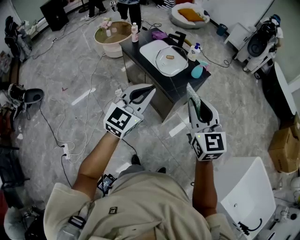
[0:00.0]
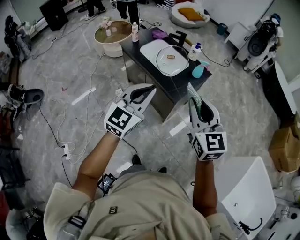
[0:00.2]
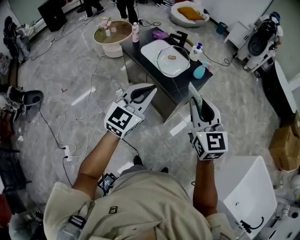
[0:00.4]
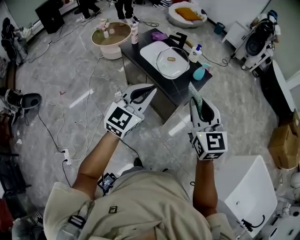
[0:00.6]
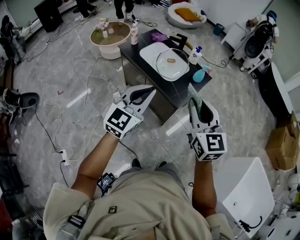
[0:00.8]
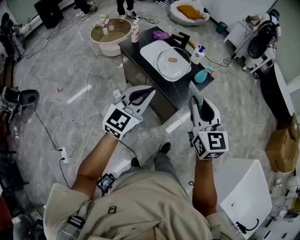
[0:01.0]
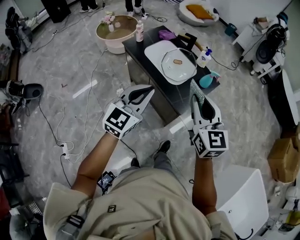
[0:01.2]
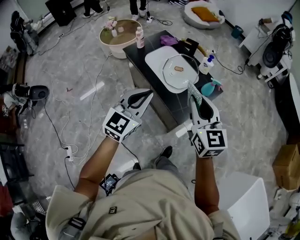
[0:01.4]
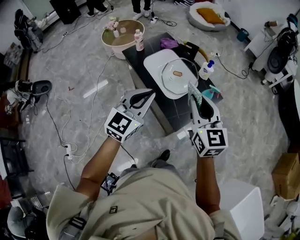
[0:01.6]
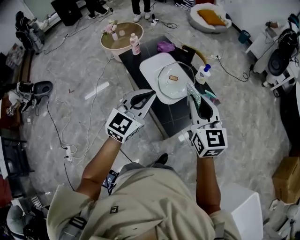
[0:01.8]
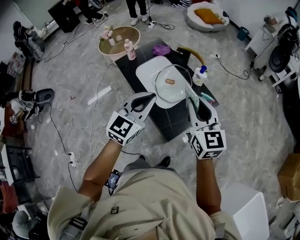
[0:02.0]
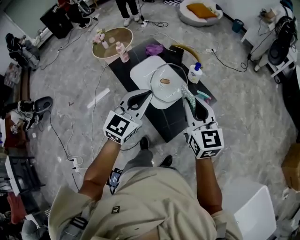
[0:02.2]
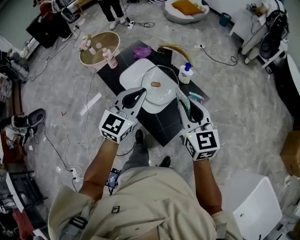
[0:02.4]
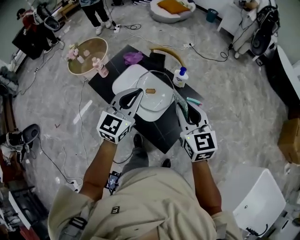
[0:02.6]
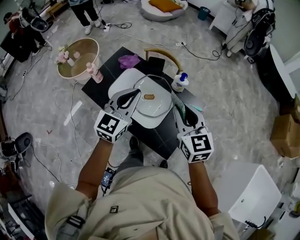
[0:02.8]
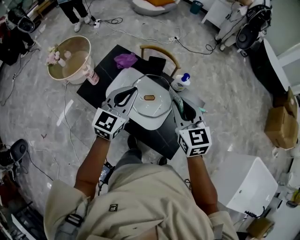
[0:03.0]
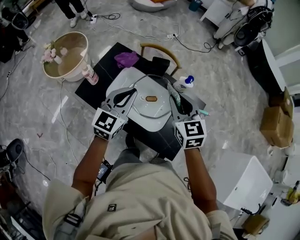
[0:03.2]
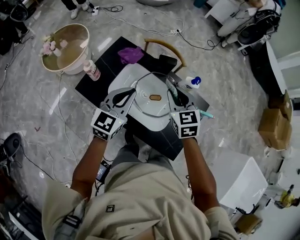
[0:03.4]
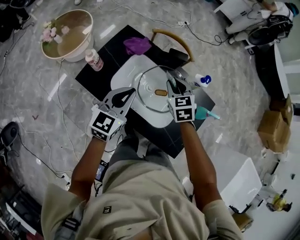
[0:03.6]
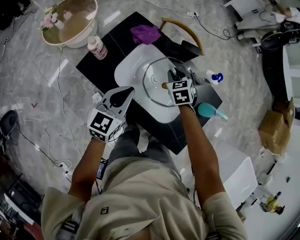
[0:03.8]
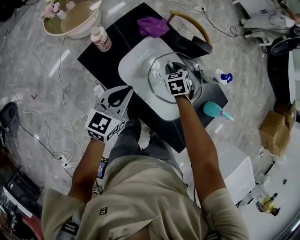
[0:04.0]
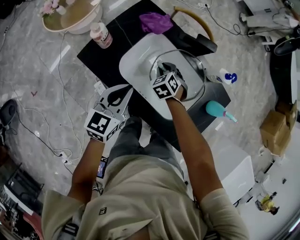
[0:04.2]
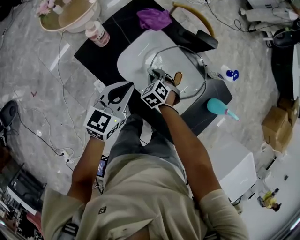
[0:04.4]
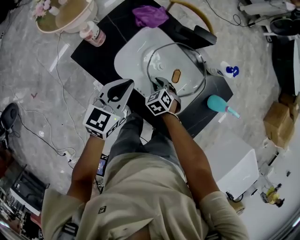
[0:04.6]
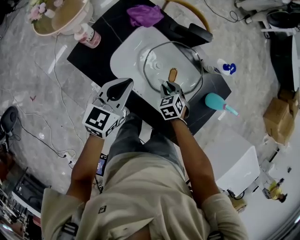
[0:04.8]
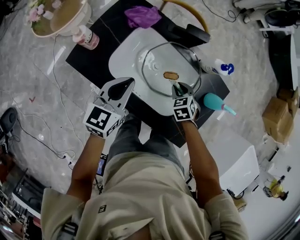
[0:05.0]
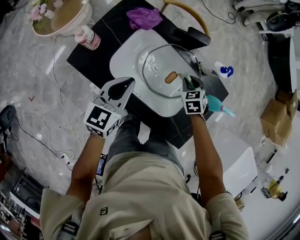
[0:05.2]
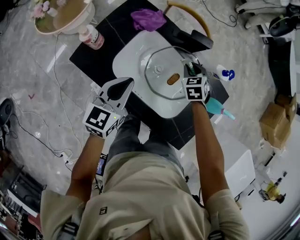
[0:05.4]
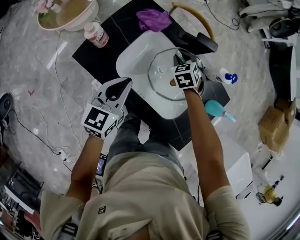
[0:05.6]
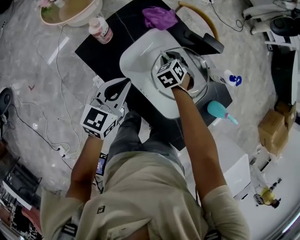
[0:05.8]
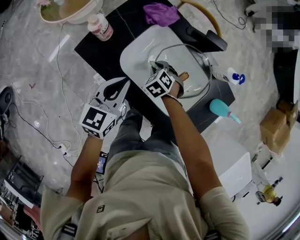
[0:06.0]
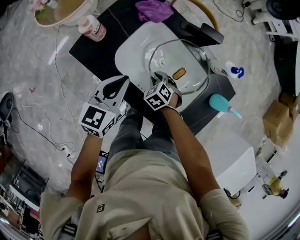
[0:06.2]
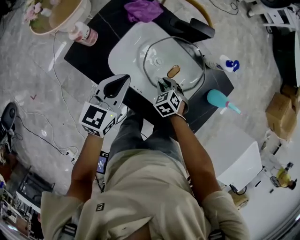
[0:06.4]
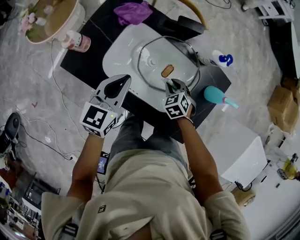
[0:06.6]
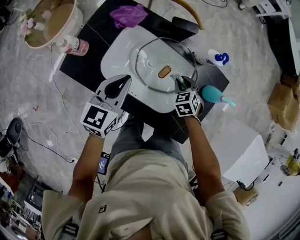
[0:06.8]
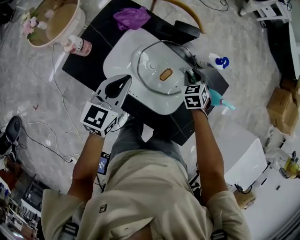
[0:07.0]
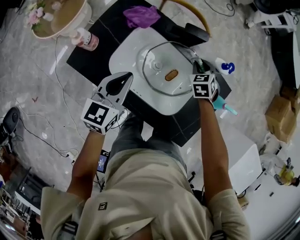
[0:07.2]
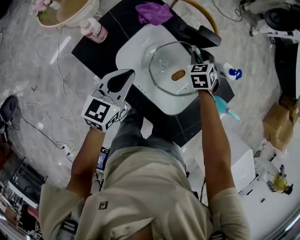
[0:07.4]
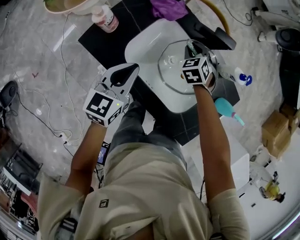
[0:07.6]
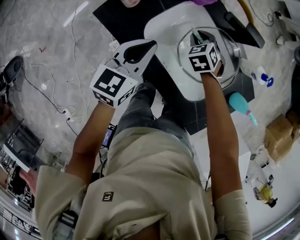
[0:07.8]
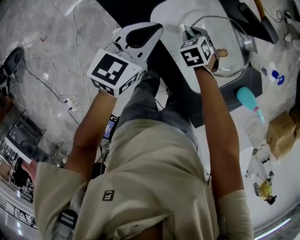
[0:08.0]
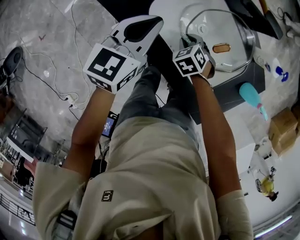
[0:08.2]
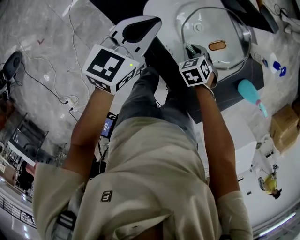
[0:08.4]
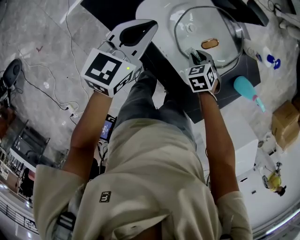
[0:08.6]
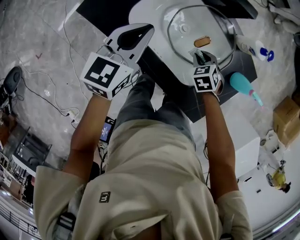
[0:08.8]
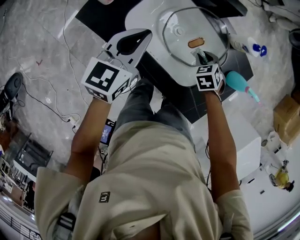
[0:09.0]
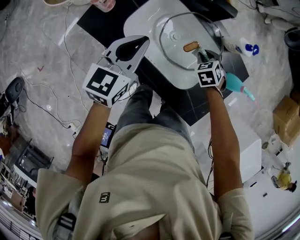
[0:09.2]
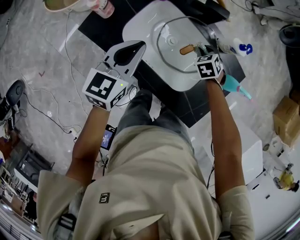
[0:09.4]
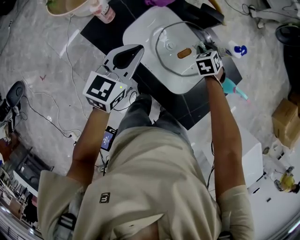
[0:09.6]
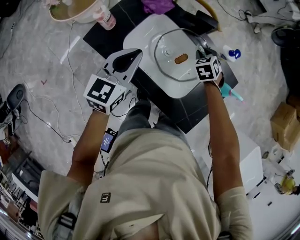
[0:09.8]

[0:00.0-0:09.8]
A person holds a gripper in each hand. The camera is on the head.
0:00.0 to 0:01.4: The two grippers go some 20 cm forward.
0:01.4 to 0:02.8: Both grippers move forward, roughly 30 cm.
0:02.8 to 0:04.2: The right gripper moves downward, to the left and forward, approximately 50 cm, and tilts its fingers some 40 degrees downward, while the left gripper shifts roughly 30 cm downward and to the left, and changes its angle by some 30 degrees.
0:04.2 to 0:05.6: The right gripper heads forward, covering some 10 cm, and goes to the right and returns, approximately 20 cm each way.
0:05.6 to 0:07.0: The left gripper goes roughly 5 cm to the right; the right gripper travels to the right and backward by roughly 15 cm.
0:07.0 to 0:08.4: The left gripper moves approximately 10 cm. The right gripper moves roughly 25 cm, and swivels some 30 degrees.
0:08.4 to 0:09.8: The left gripper is displaced upward by some 10 cm, while the right gripper moves approximately 25 cm, and swivels about 20 degrees.

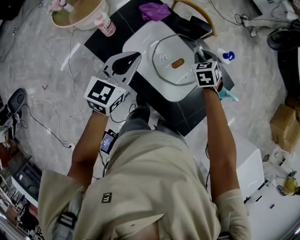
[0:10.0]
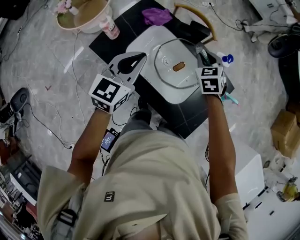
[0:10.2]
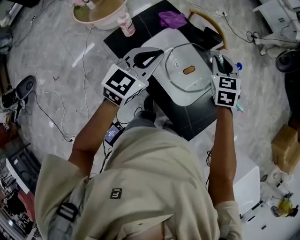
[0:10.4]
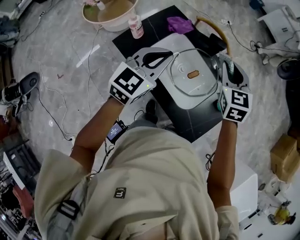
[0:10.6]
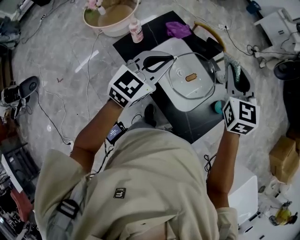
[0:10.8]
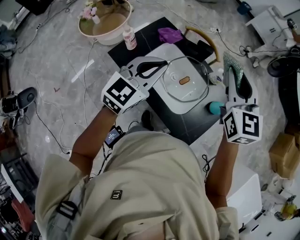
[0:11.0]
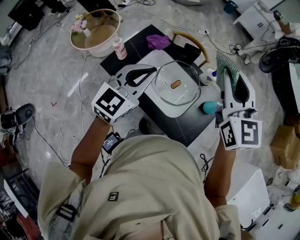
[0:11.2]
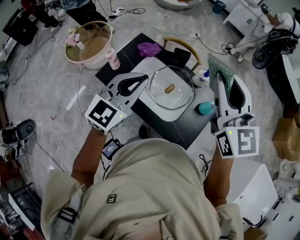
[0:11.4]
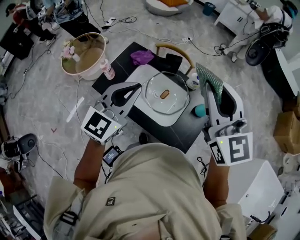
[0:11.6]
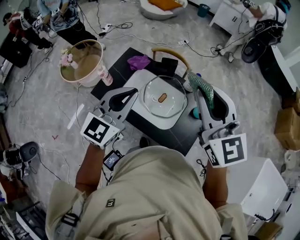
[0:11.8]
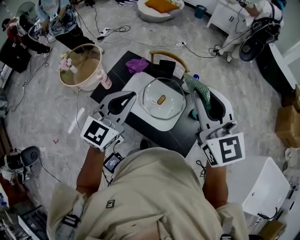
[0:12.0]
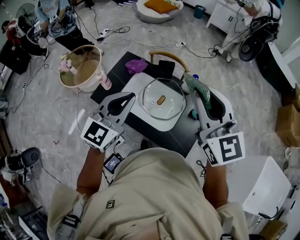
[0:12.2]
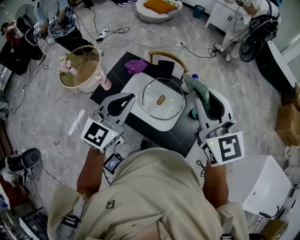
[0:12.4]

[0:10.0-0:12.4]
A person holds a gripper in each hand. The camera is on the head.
0:10.0 to 0:11.2: The left gripper moves upward, approximately 15 cm; the right gripper heads upward, covering roughly 40 cm, and angles its fingers upward, by some 50 degrees.
0:11.2 to 0:12.4: The left gripper changes place by approximately 5 cm. The right gripper goes about 5 cm backward.

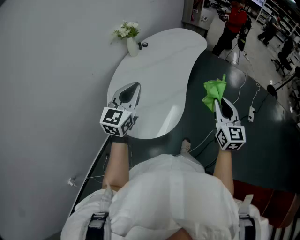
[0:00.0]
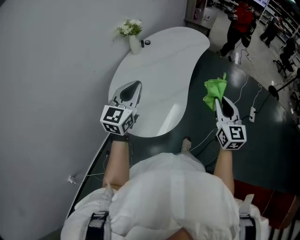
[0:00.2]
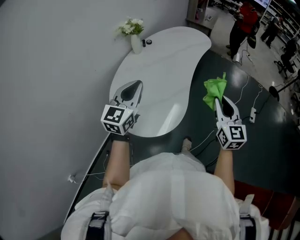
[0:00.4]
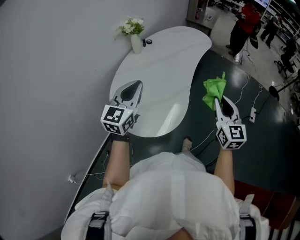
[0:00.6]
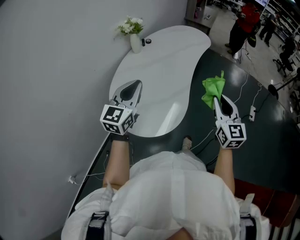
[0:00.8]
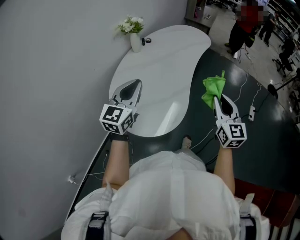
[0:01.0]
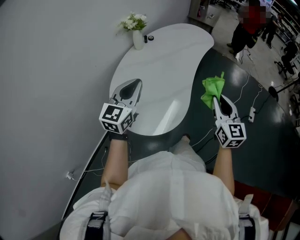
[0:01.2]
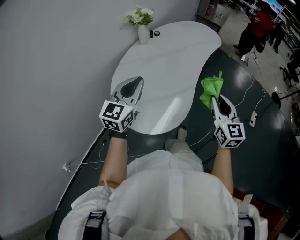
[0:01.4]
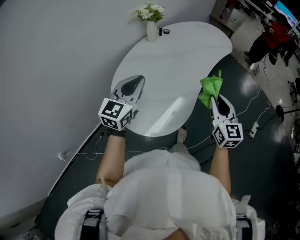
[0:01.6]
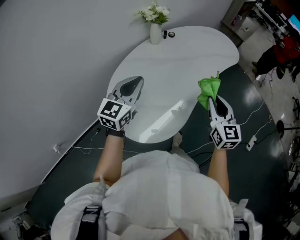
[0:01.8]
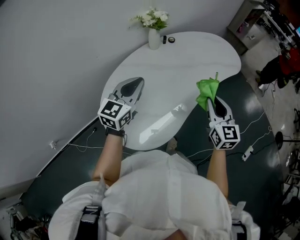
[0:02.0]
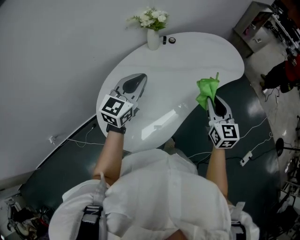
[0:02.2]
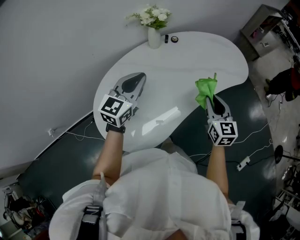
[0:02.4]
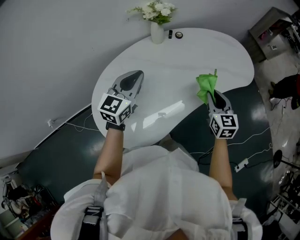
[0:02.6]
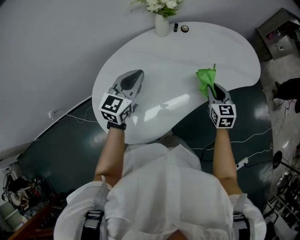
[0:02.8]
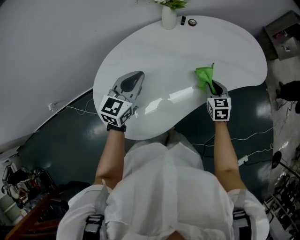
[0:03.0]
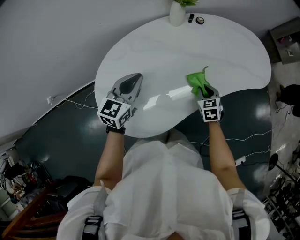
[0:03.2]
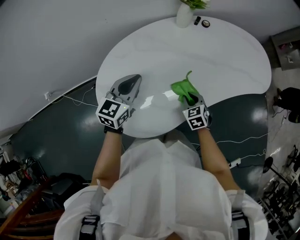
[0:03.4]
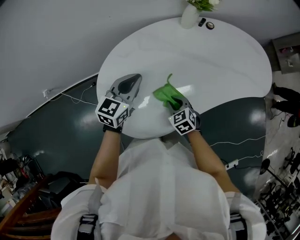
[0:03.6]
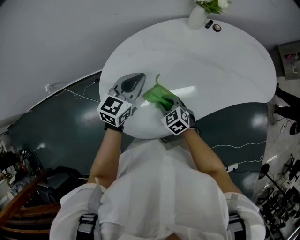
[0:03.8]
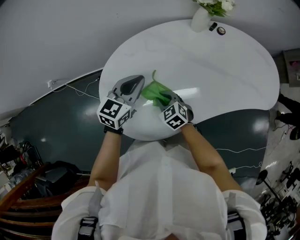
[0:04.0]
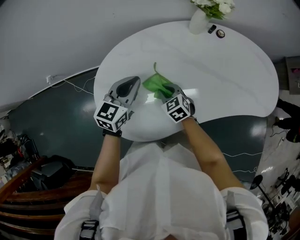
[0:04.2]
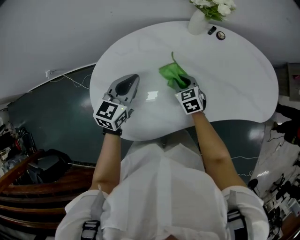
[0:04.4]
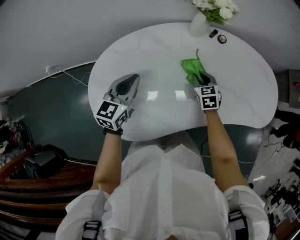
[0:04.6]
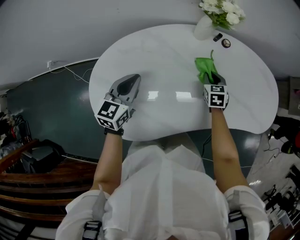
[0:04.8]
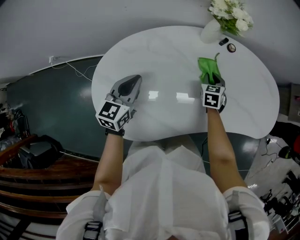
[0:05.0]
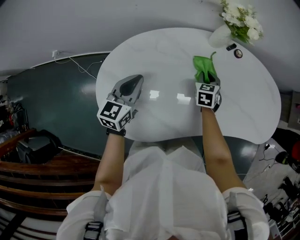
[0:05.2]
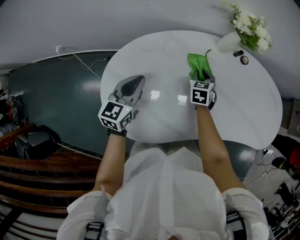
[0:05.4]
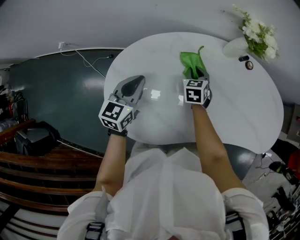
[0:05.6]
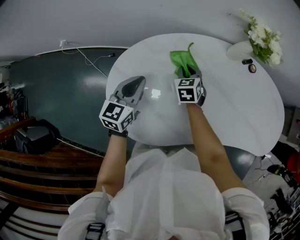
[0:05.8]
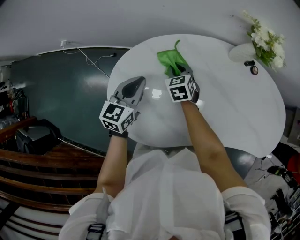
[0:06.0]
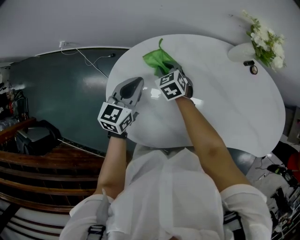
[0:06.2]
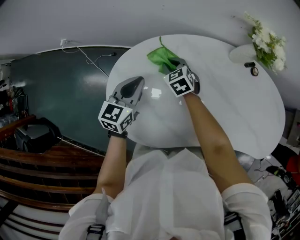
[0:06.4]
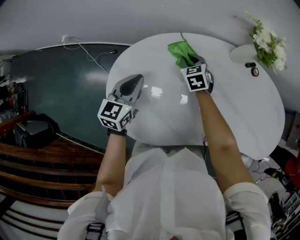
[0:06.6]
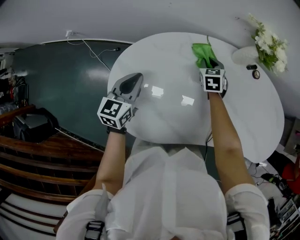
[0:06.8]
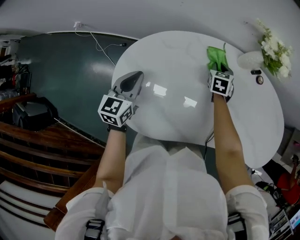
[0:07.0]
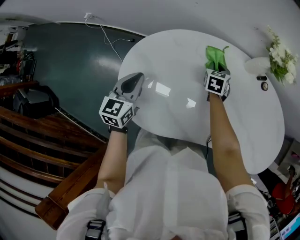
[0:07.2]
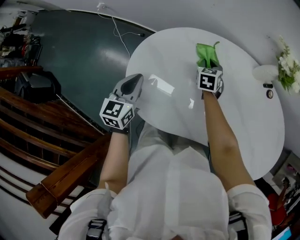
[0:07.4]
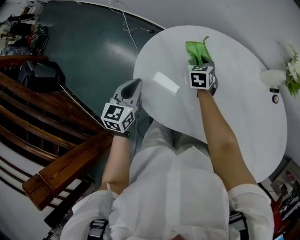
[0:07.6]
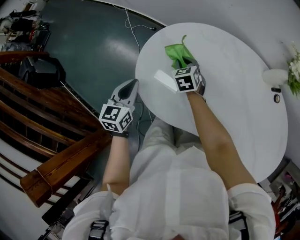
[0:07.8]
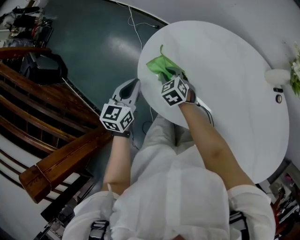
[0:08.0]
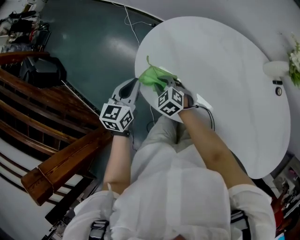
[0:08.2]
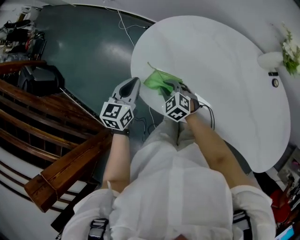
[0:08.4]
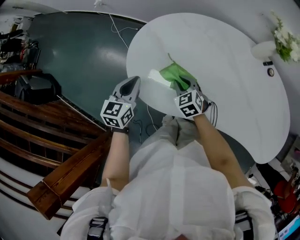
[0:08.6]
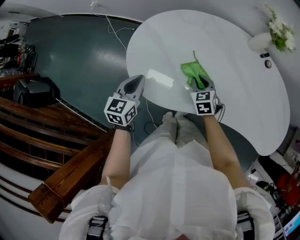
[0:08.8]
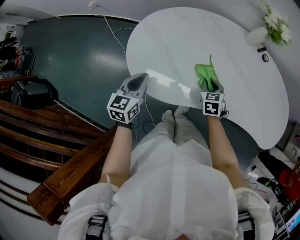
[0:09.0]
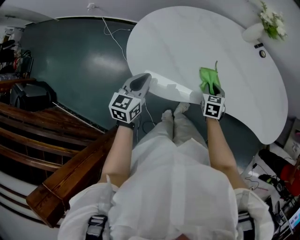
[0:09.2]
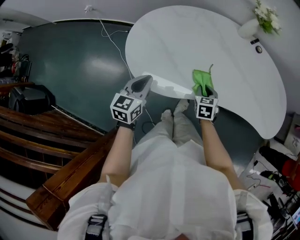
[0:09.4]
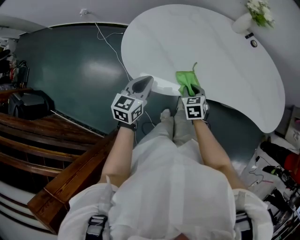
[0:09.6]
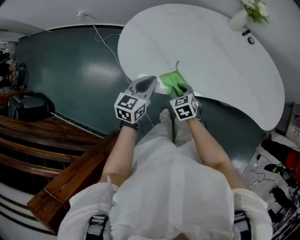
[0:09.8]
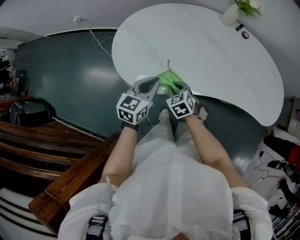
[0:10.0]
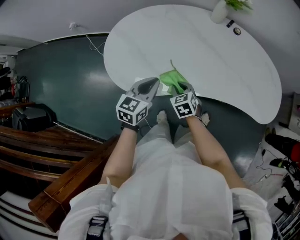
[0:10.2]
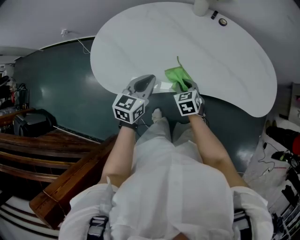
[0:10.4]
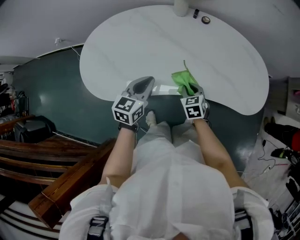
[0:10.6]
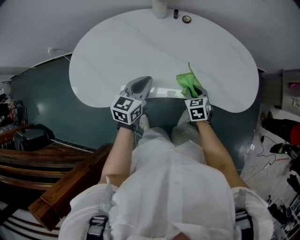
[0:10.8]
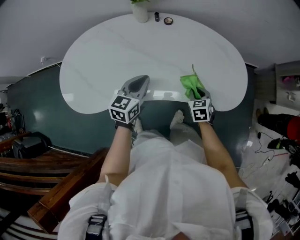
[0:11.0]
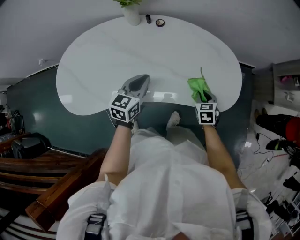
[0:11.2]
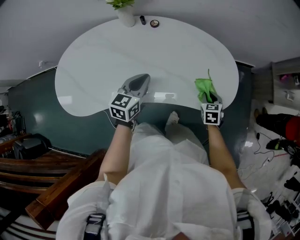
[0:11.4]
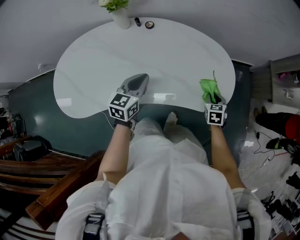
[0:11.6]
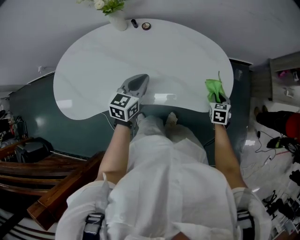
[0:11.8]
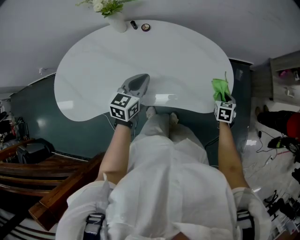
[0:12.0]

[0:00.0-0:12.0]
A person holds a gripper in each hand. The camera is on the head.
0:00.0 to 0:01.6: The left gripper ends up roughly 5 cm from where it was, while the right gripper is displaced forward and to the left by some 10 cm.
0:01.6 to 0:03.0: The left gripper heads forward, downward and to the right, covering roughly 20 cm, and rotates about 30 degrees, while the right gripper shifts some 35 cm forward and downward, and turns by roughly 40 degrees.
0:03.0 to 0:04.4: The left gripper goes roughly 5 cm downward. The right gripper changes place by some 25 cm, and swivels roughly 30 degrees.
0:04.4 to 0:06.0: The left gripper travels to the left by some 10 cm; the right gripper is displaced to the left and forward by some 20 cm.
0:06.0 to 0:07.6: The right gripper goes left and right, approximately 25 cm each way, reversing 2 times. Meanwhile the left gripper travels backward and to the left by some 20 cm, and rotates about 30 degrees.
0:07.6 to 0:09.0: The right gripper ends up approximately 25 cm from where it was. The left gripper moves roughly 10 cm.
0:09.0 to 0:10.4: The right gripper travels to the right and backward by about 10 cm; the left gripper travels to the right by about 25 cm.
0:10.4 to 0:12.0: The left gripper changes place by about 35 cm, while the right gripper moves about 60 cm, and swivels roughly 40 degrees.
